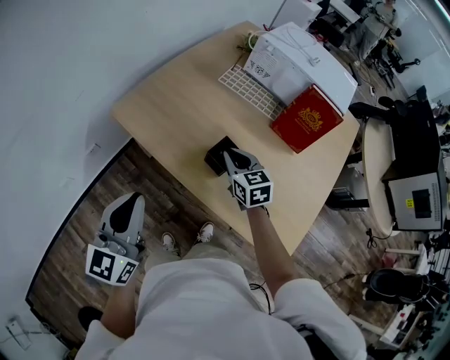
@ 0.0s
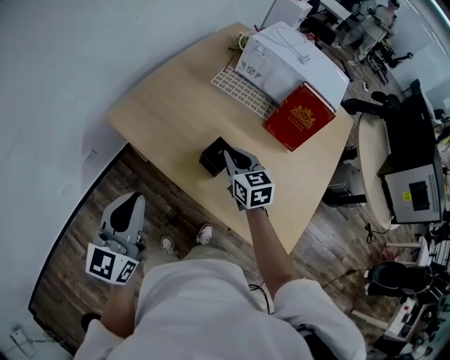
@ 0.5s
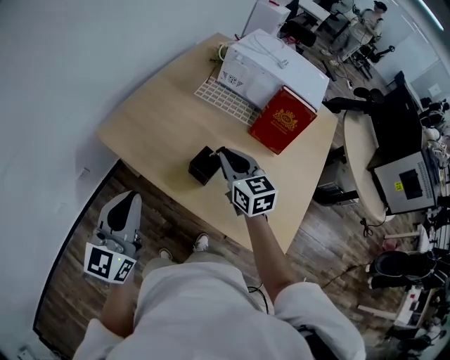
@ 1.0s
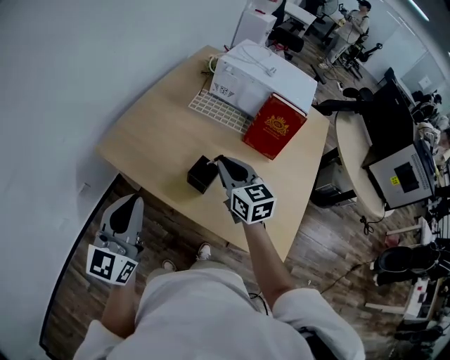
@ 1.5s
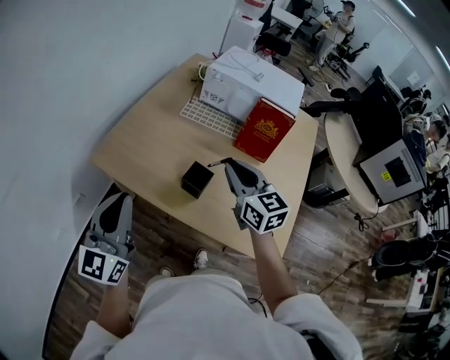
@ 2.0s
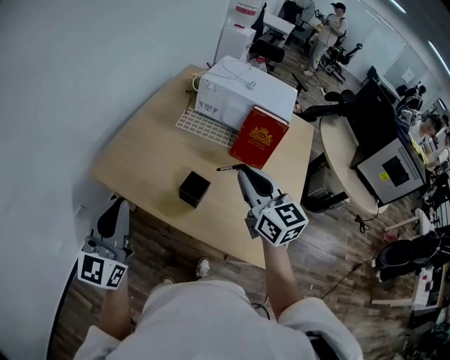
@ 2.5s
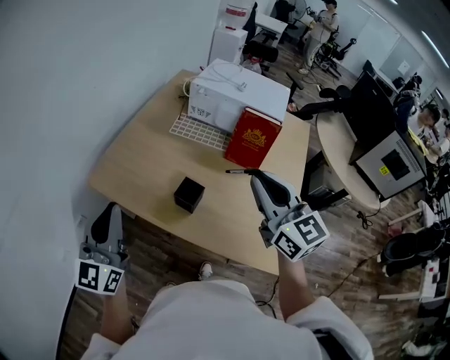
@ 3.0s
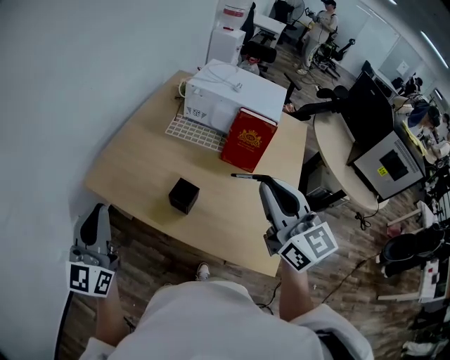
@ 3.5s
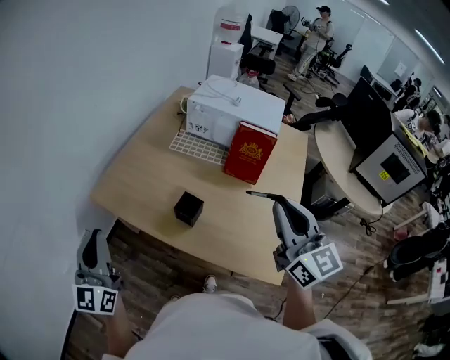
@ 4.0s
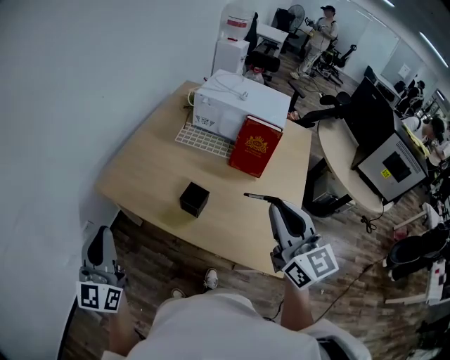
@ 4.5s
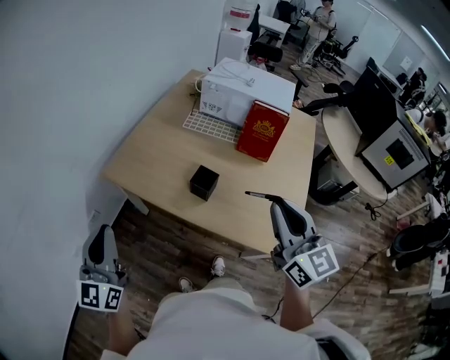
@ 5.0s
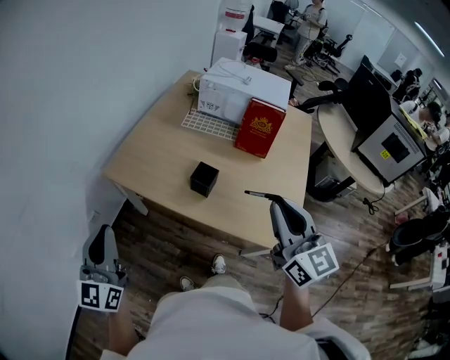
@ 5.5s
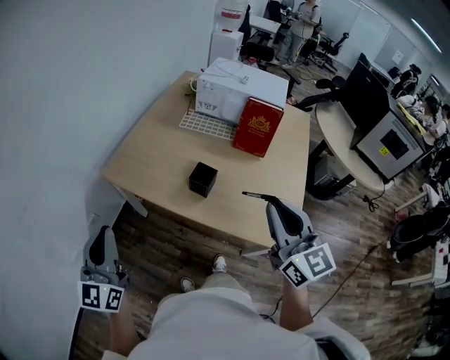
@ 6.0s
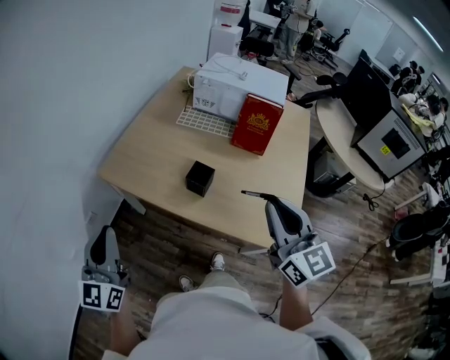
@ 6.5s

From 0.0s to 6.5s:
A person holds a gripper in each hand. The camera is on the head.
From 0.0s to 2.0s: The right gripper shifts some 20 cm upward, and changes its angle by roughly 20 degrees, while the left gripper is displaced upward by approximately 5 cm.
From 2.0s to 4.5s: The right gripper is displaced backward, upward and to the right by about 20 cm, while the left gripper moves roughly 5 cm.
From 4.5s to 6.5s: The left gripper shifts by about 5 cm. The right gripper moves backward, about 5 cm.

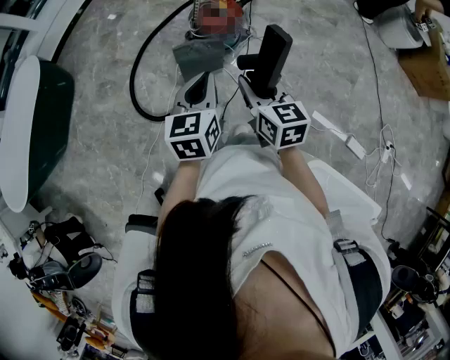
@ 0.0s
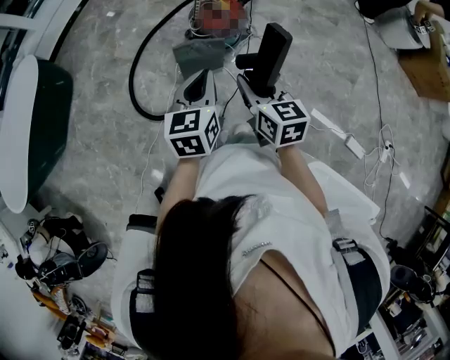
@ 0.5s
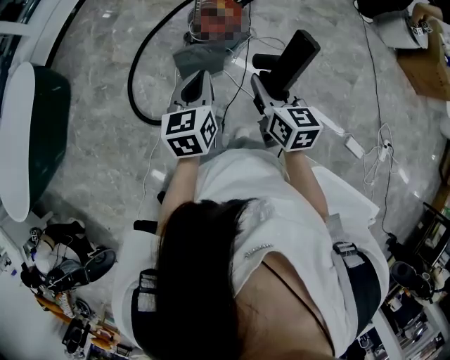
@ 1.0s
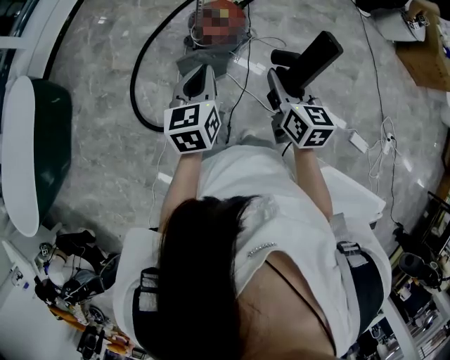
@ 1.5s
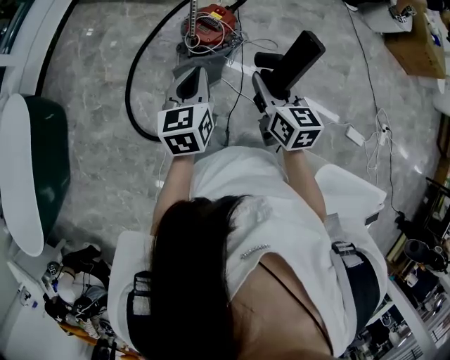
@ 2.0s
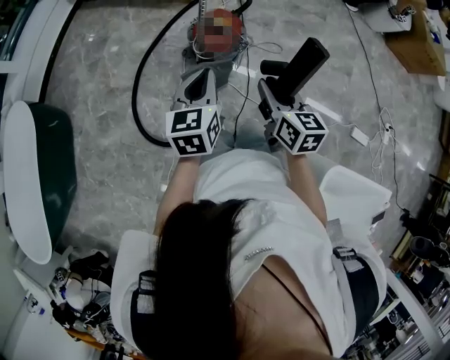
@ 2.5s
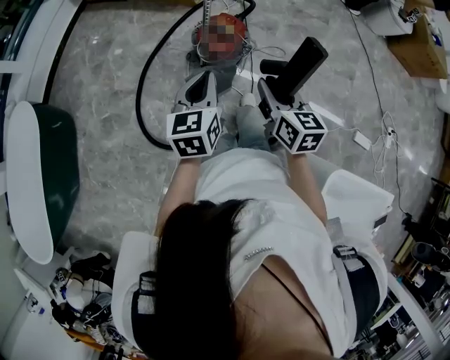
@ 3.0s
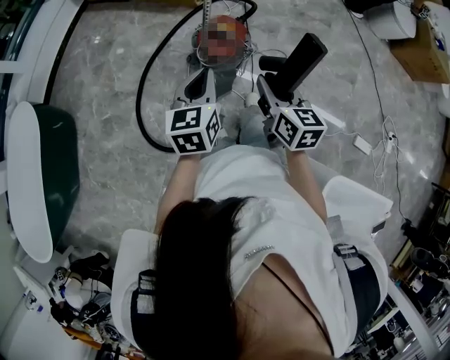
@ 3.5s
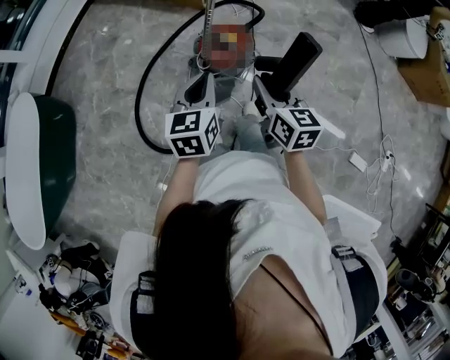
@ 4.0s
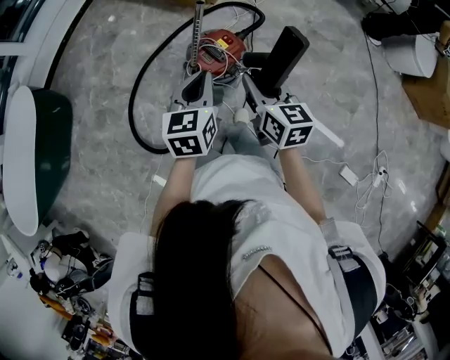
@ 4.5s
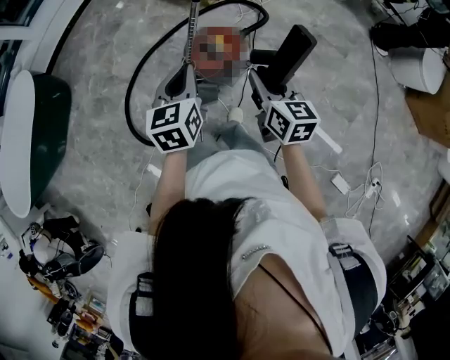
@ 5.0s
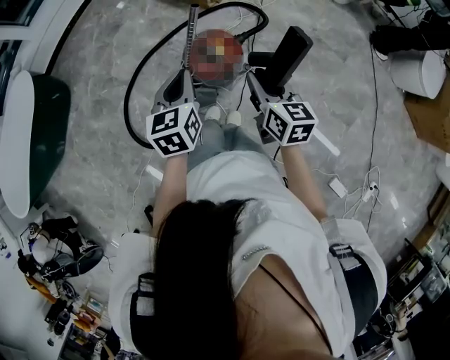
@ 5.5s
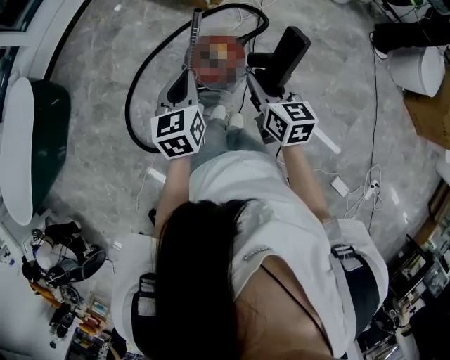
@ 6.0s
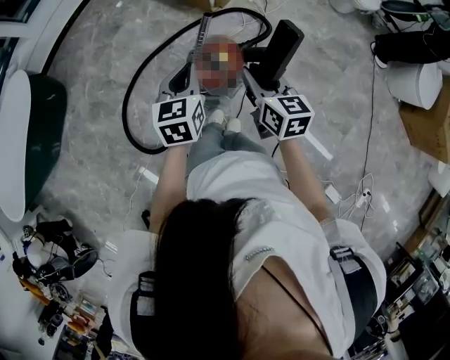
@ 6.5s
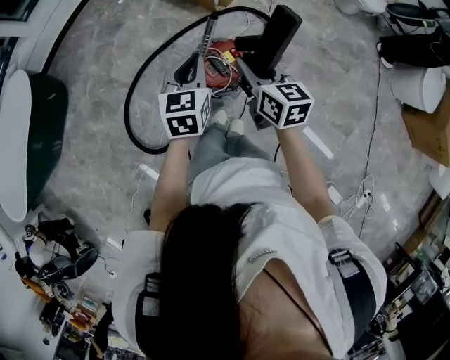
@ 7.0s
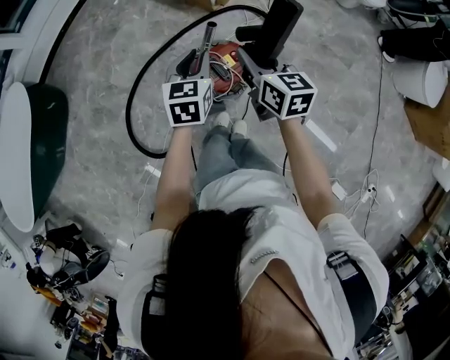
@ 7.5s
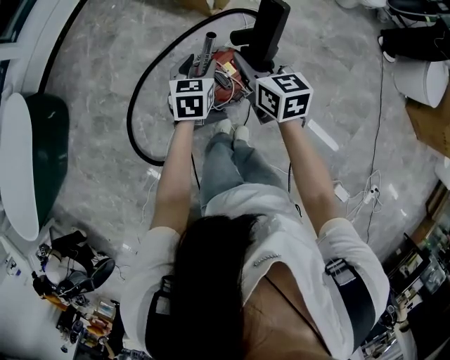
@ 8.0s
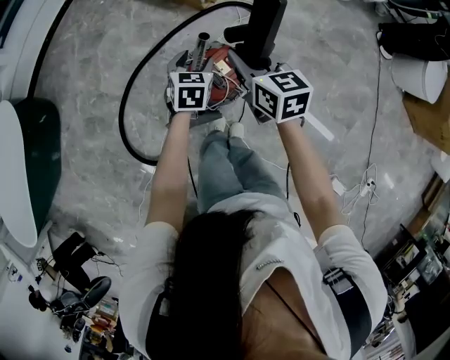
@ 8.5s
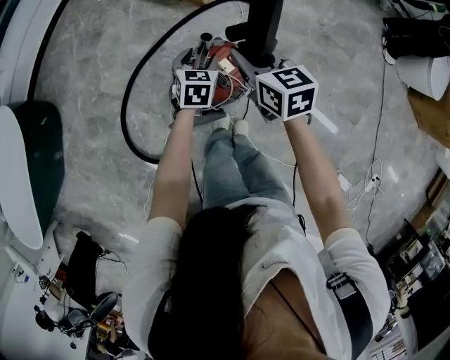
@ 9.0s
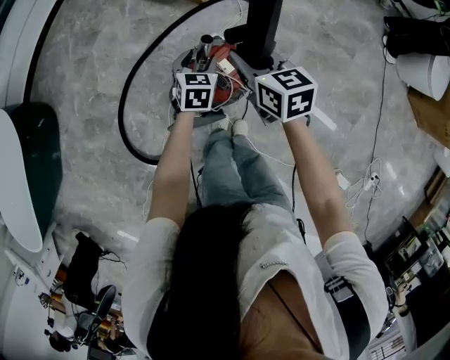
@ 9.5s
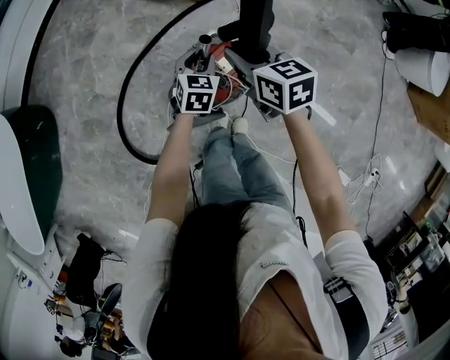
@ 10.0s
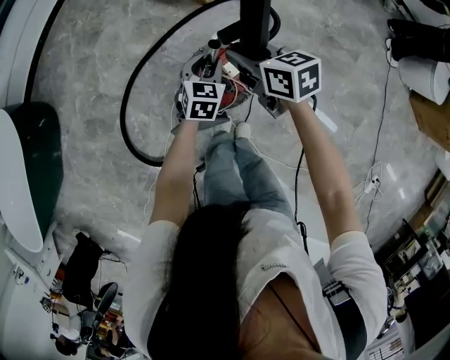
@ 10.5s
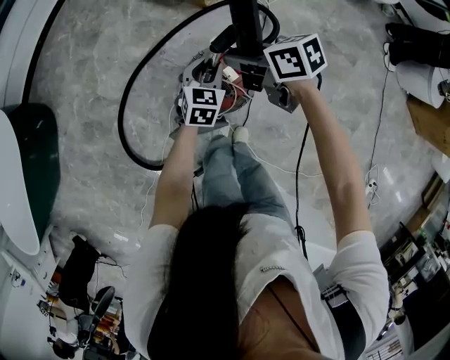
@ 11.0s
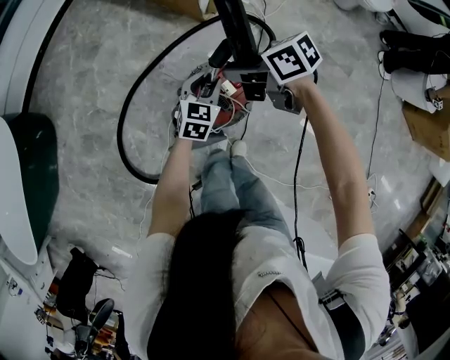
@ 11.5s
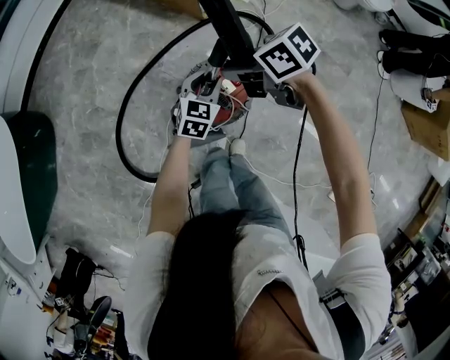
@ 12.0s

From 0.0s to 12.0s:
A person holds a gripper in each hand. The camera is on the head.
From 0.0s to 2.0s: The left gripper travels forward and to the left by approximately 15 cm. The right gripper is displaced forward by roughly 10 cm.
From 2.0s to 4.0s: Both grippers travel together forward, roughly 10 cm.
From 4.0s to 6.0s: The grippers both shift forward and to the right by some 15 cm.
From 6.0s to 8.0s: The left gripper shifts some 20 cm forward and downward, and opens its fingers; the right gripper travels forward by about 20 cm.
From 8.0s to 10.0s: The left gripper goes some 15 cm downward. The right gripper shifts some 10 cm downward and forward.
From 10.0s to 12.0s: The right gripper rotates approximately 40 degrees.

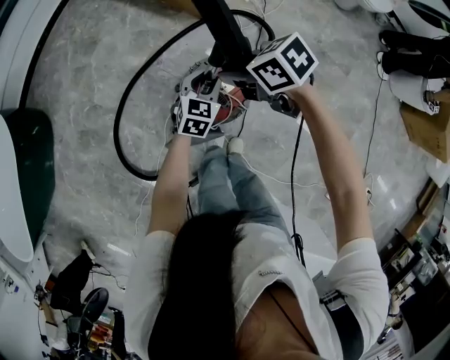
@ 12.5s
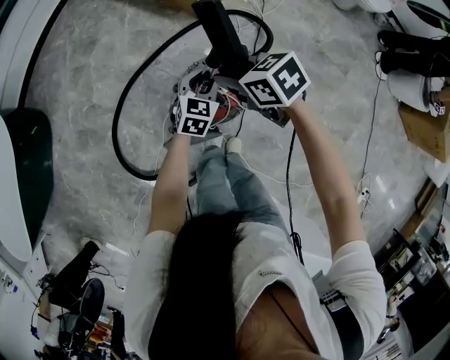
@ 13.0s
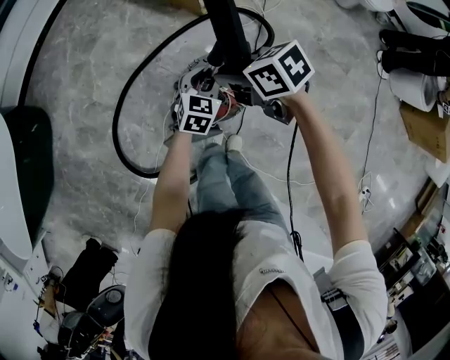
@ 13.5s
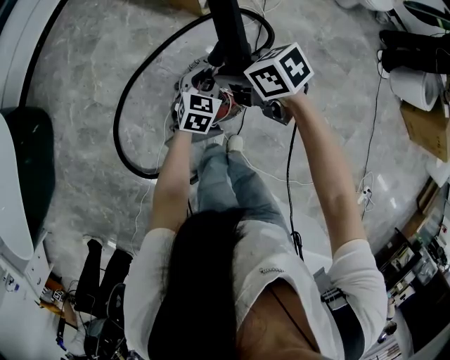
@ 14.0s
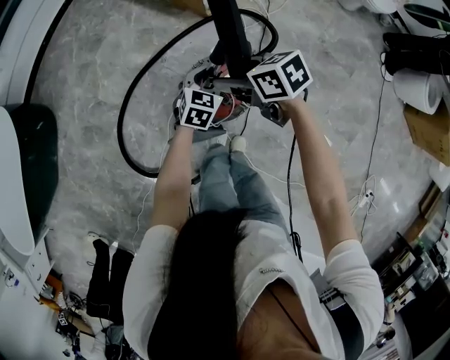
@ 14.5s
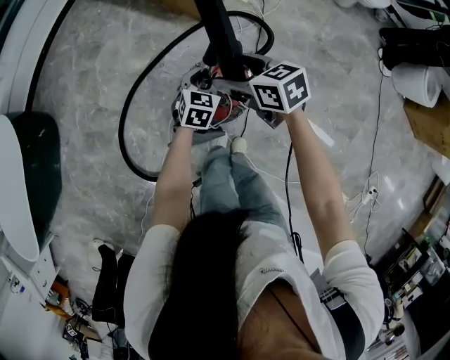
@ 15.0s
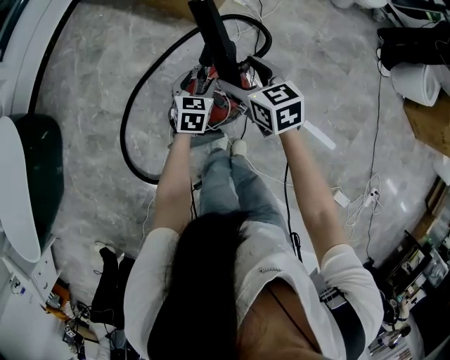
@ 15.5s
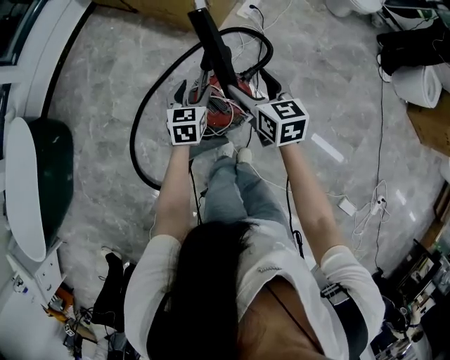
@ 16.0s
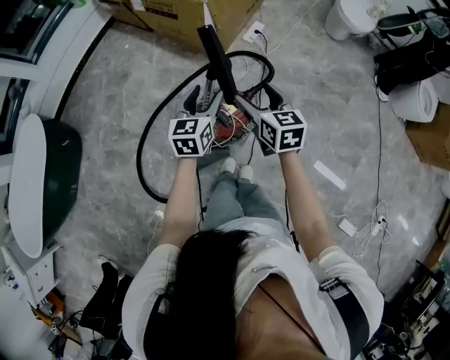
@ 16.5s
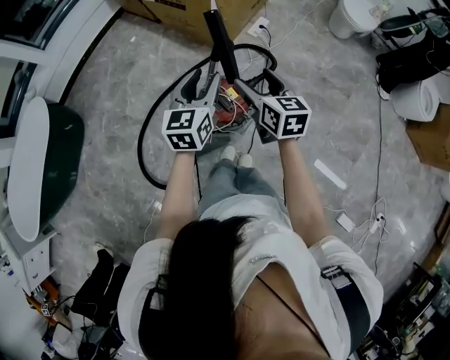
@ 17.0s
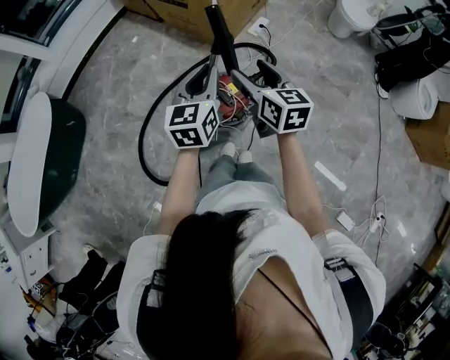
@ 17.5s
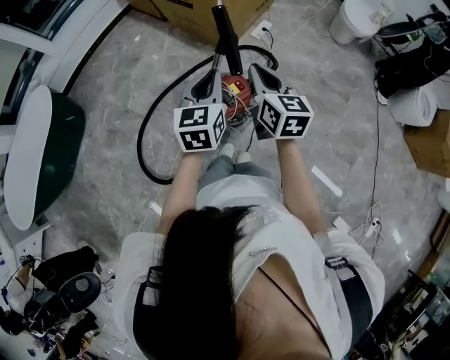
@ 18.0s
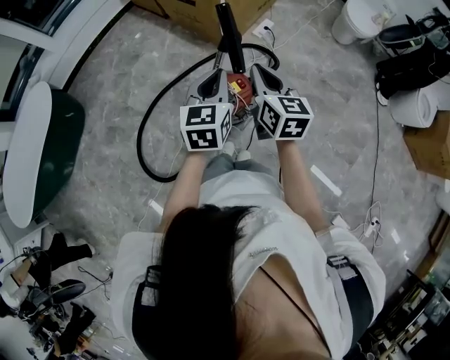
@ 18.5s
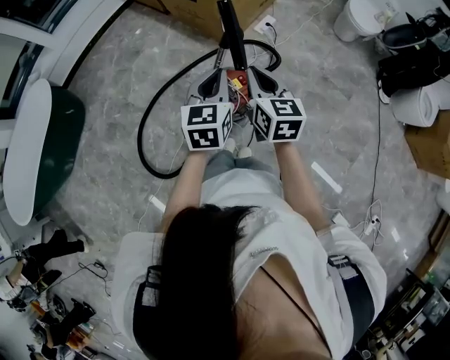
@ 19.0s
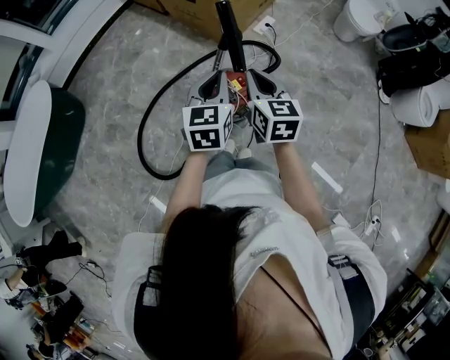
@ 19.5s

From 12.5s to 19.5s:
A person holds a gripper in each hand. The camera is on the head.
From 12.5s to 14.5s: The right gripper opens.
From 14.5s to 16.0s: The right gripper travels to the right and upward by some 10 cm, and turns by roughly 40 degrees. The left gripper goes about 5 cm upward, and opens its fingers.
From 16.0s to 17.5s: The right gripper travels upward and backward by roughly 15 cm. Meanwhile the left gripper travels upward and backward by about 25 cm, swivels about 20 degrees, and closes its fingers.
From 17.5s to 19.5s: The right gripper closes.

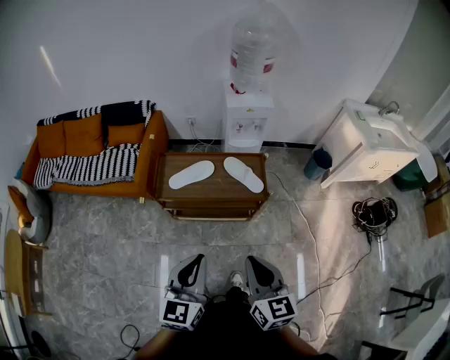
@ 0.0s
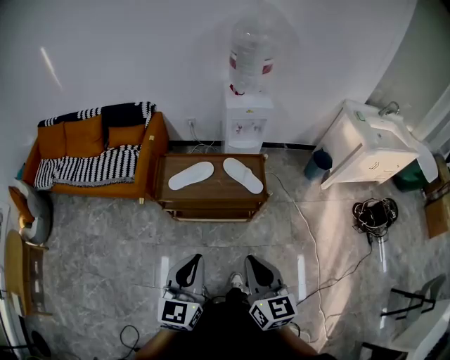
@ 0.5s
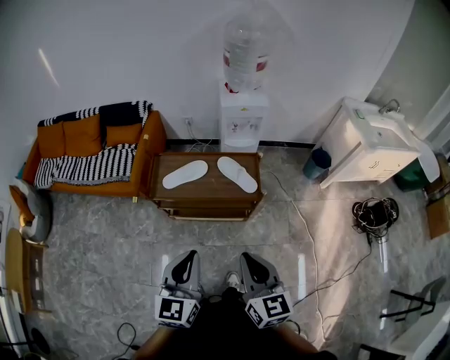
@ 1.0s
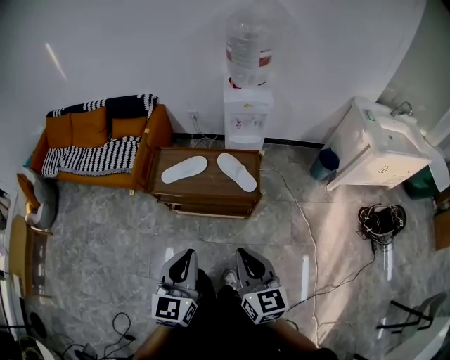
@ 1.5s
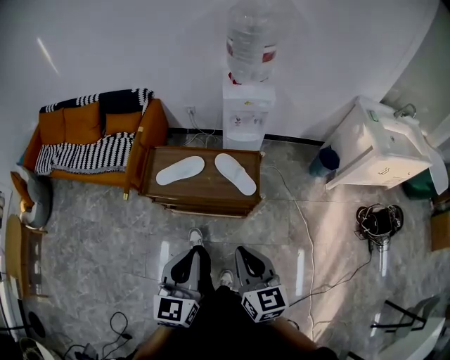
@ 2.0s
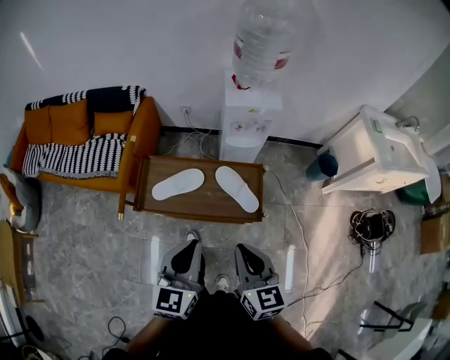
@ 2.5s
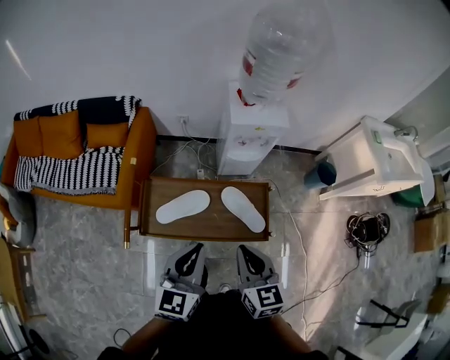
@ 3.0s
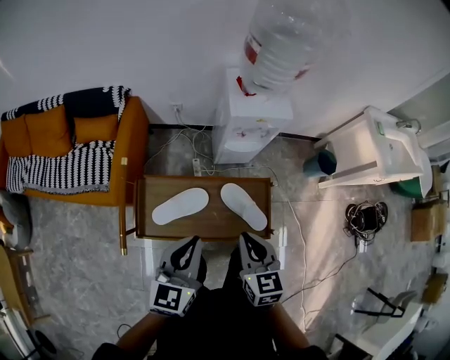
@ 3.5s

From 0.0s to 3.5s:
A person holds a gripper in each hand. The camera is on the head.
From 0.0s to 2.0s: The left gripper moves to the right and forward, some 10 cm. Meanwhile the right gripper moves forward and to the right, some 10 cm.
From 2.0s to 3.5s: The grippers both shift forward by about 30 cm.
